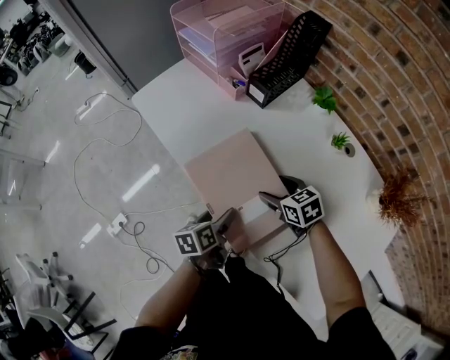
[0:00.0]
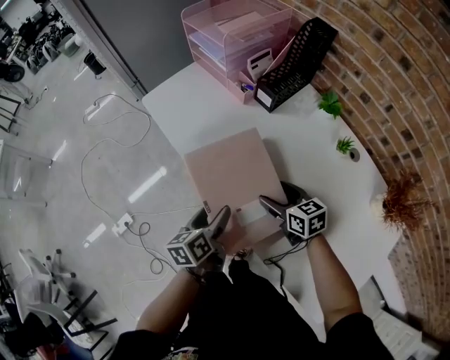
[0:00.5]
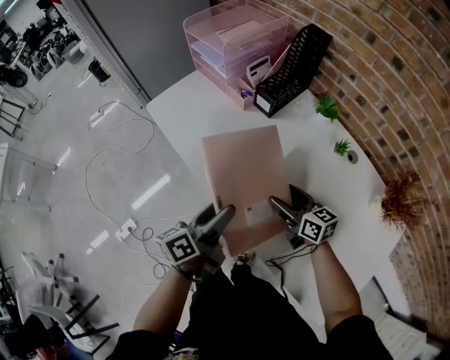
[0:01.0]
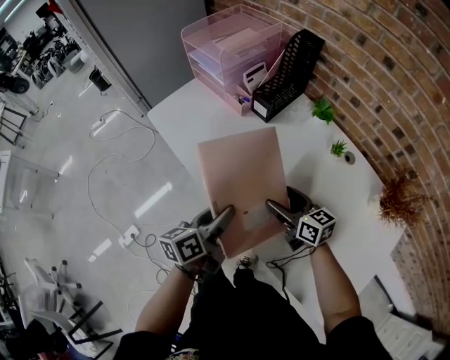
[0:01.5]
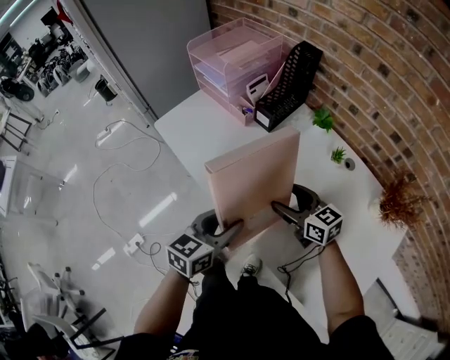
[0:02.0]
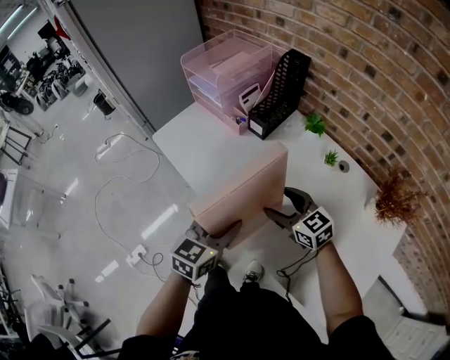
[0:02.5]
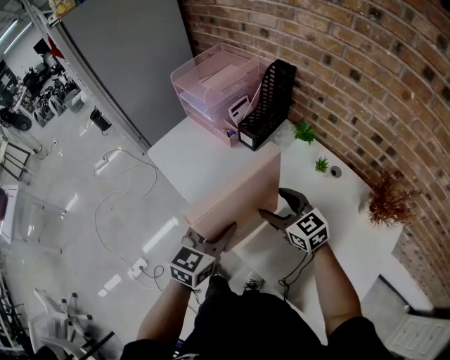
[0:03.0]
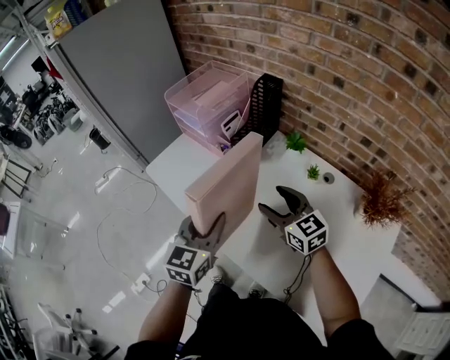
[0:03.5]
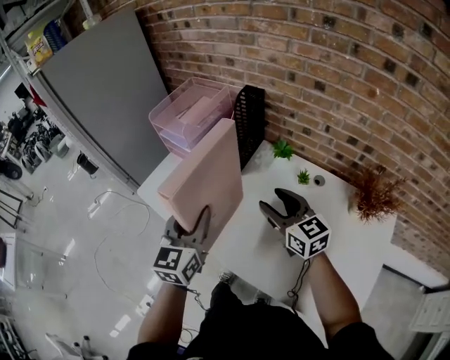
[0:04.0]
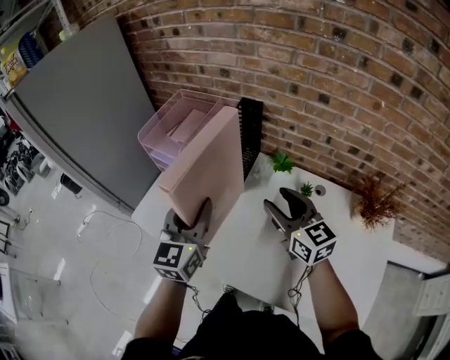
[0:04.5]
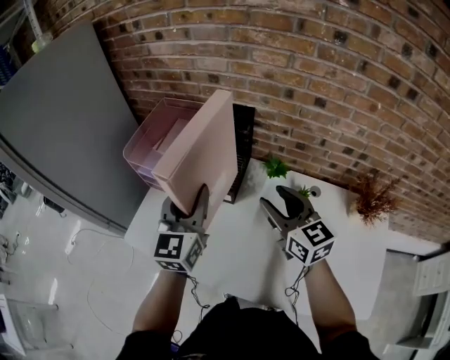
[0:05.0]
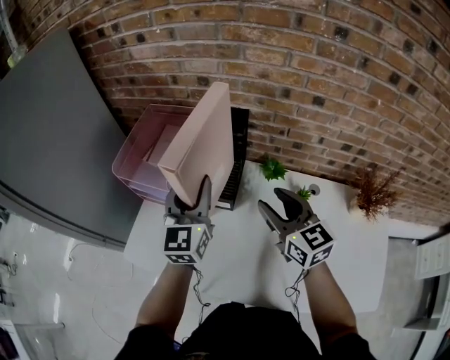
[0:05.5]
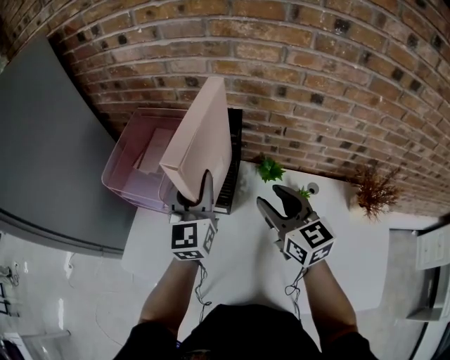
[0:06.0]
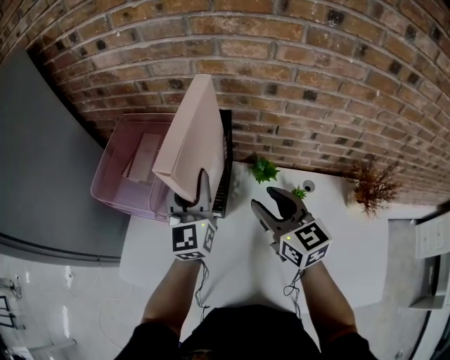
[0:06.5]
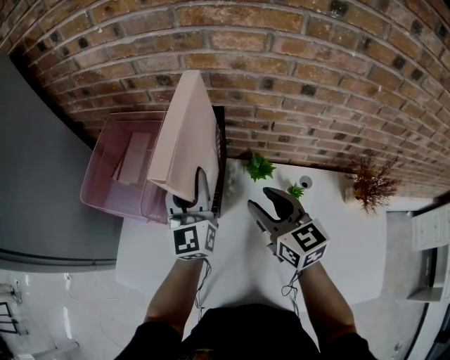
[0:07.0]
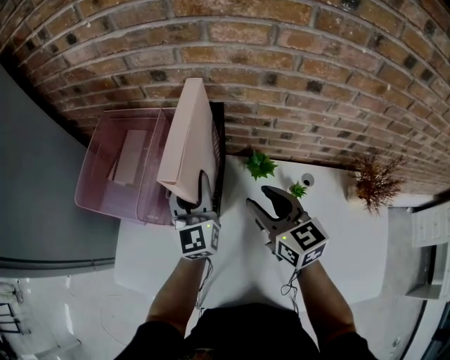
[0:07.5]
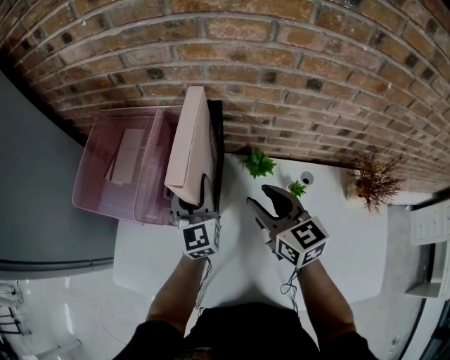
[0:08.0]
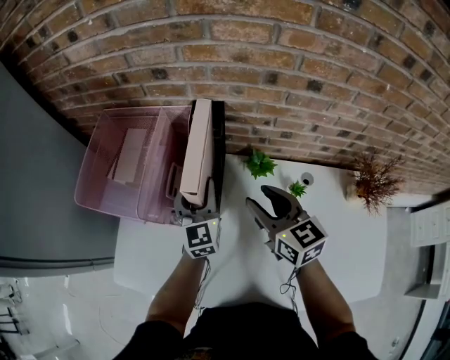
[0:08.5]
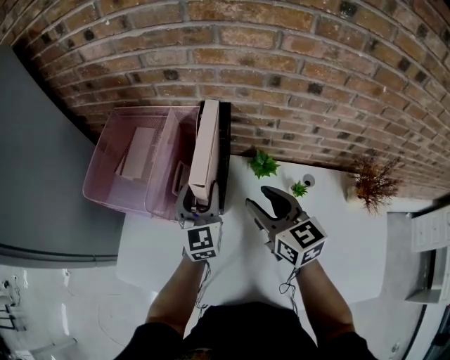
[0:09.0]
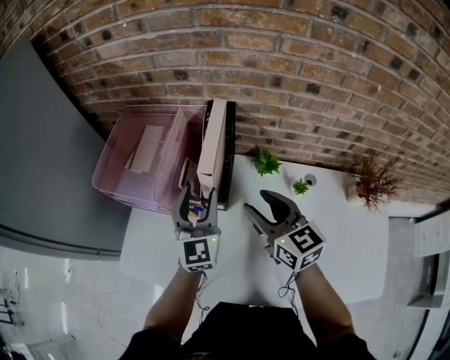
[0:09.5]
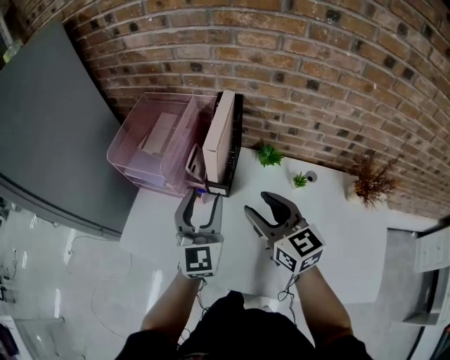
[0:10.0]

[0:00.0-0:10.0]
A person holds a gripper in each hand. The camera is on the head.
0:00.0 to 0:02.0: The right gripper goes approximately 10 cm upward, and changes its angle by some 30 degrees. Meanwhile the left gripper is displaced upward by some 20 cm, rotates around the line of its fingers by approximately 40 degrees, clockwise from behind, and closes.
0:02.0 to 0:04.0: The left gripper goes some 20 cm upward and forward, and changes its angle by roughly 30 degrees. Meanwhile the right gripper is displaced upward by some 15 cm, and rotates about 30 degrees.
0:04.0 to 0:06.0: The left gripper is displaced forward by about 30 cm. The right gripper moves forward, some 15 cm, and changes its angle by roughly 20 degrees.
0:06.0 to 0:08.0: The right gripper goes approximately 5 cm downward, while the left gripper moves downward and forward, about 15 cm.
0:08.0 to 0:10.0: The right gripper is displaced backward and to the left by roughly 15 cm. The left gripper goes roughly 20 cm backward and upward.

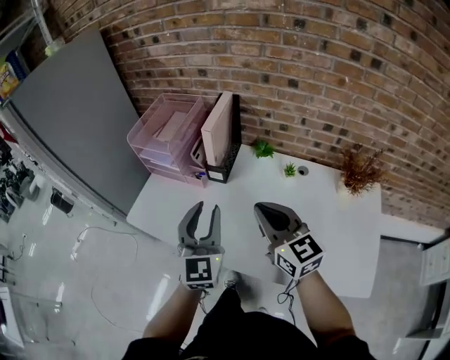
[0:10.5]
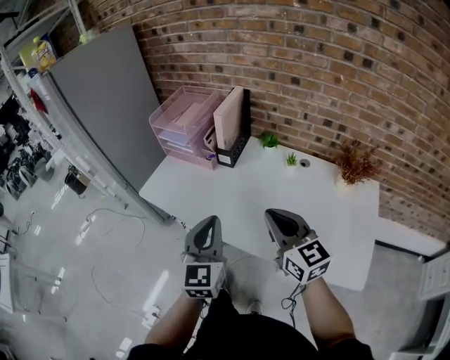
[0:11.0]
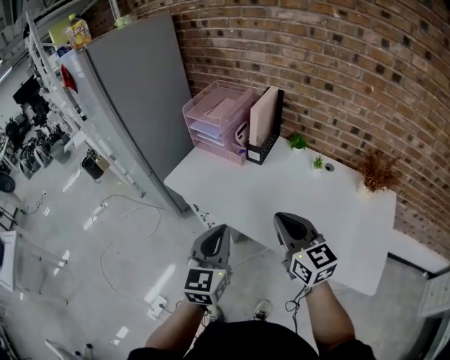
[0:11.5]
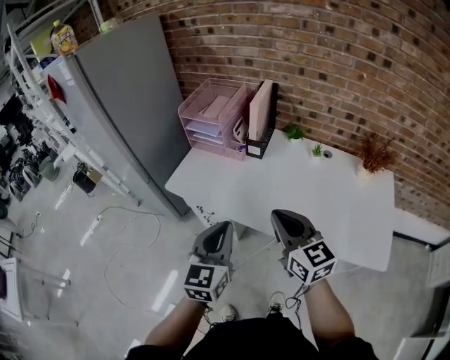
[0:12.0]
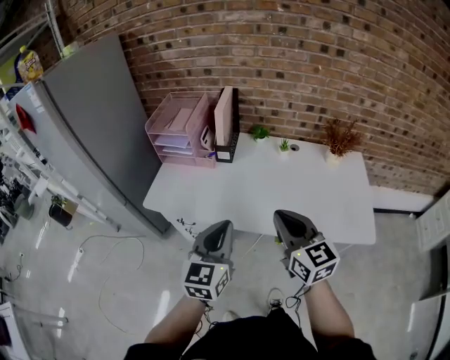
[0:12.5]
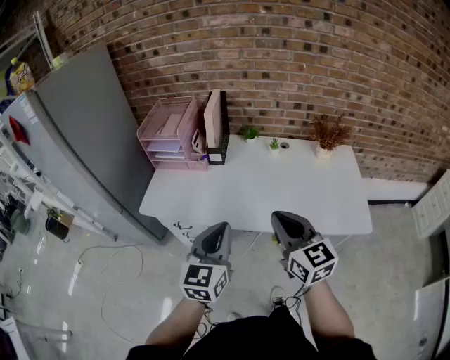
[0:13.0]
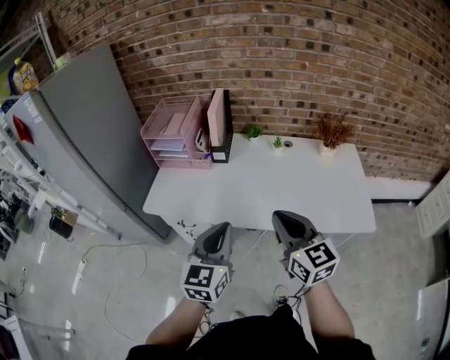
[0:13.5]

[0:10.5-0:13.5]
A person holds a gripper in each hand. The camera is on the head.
0:10.5 to 0:12.0: The grippers both shift backward and to the left by about 20 cm. The left gripper closes.
0:12.0 to 0:13.5: The right gripper is displaced backward by approximately 5 cm.

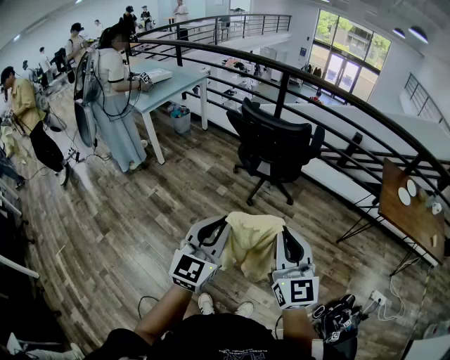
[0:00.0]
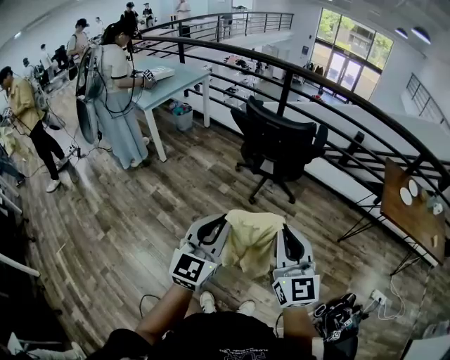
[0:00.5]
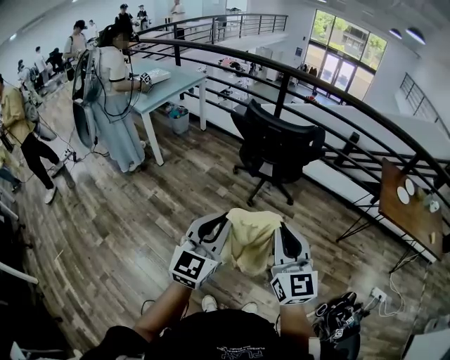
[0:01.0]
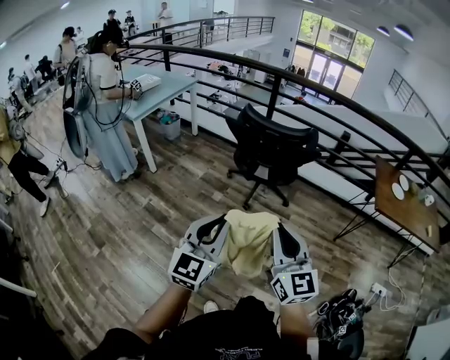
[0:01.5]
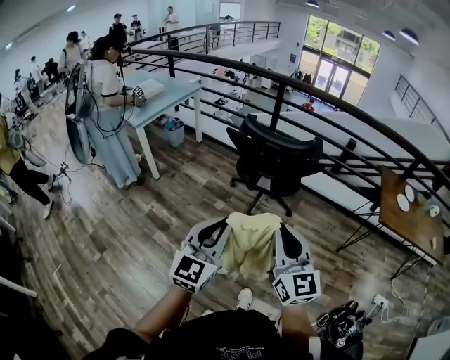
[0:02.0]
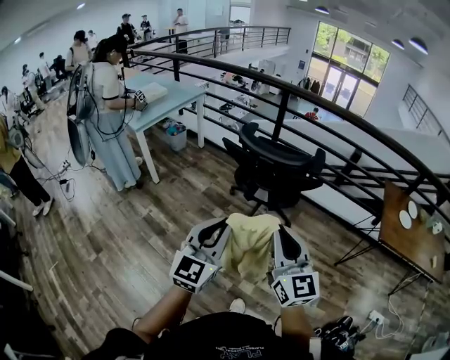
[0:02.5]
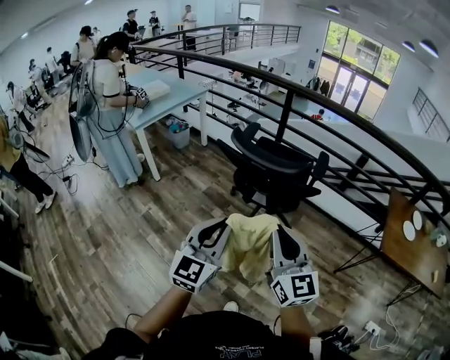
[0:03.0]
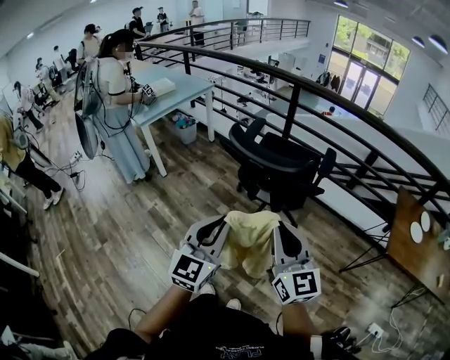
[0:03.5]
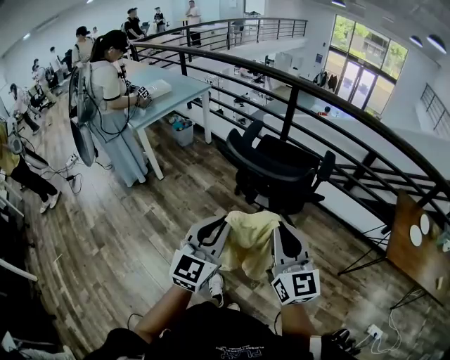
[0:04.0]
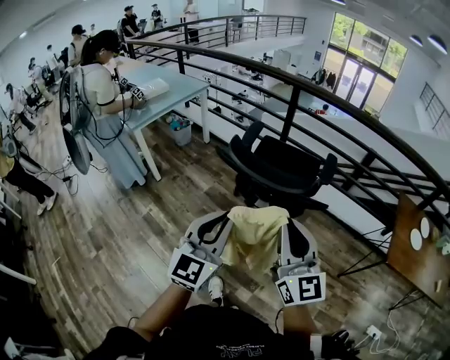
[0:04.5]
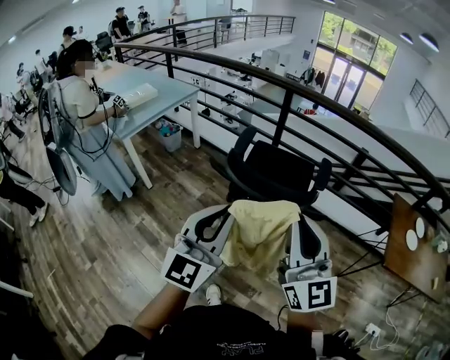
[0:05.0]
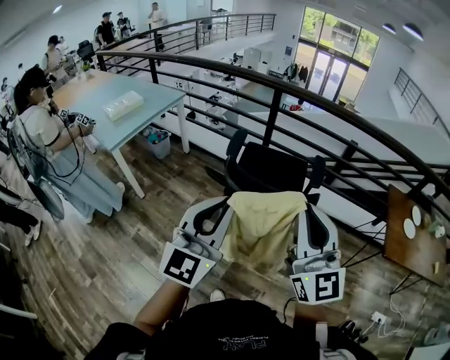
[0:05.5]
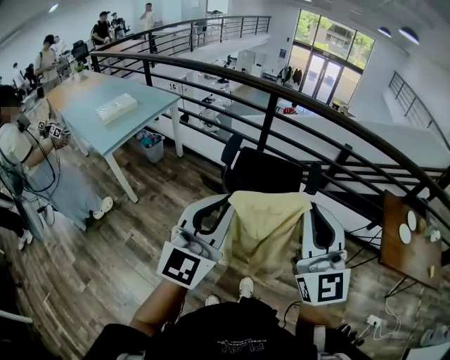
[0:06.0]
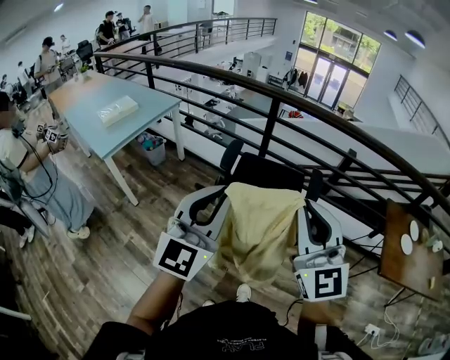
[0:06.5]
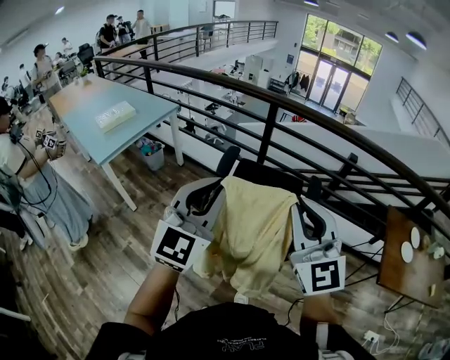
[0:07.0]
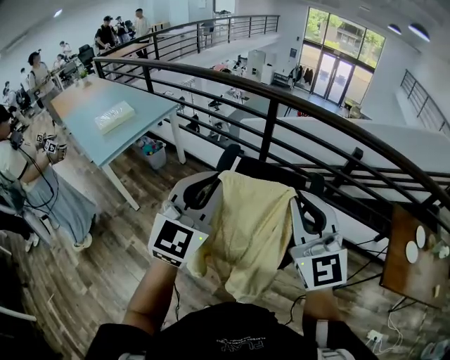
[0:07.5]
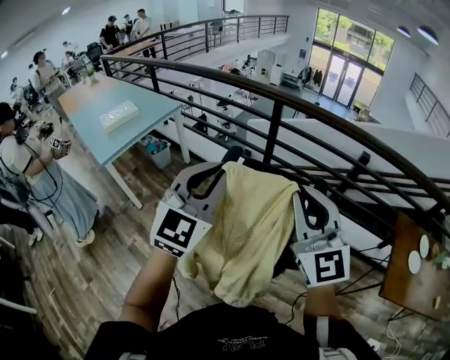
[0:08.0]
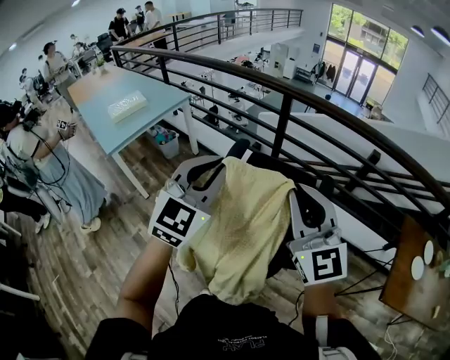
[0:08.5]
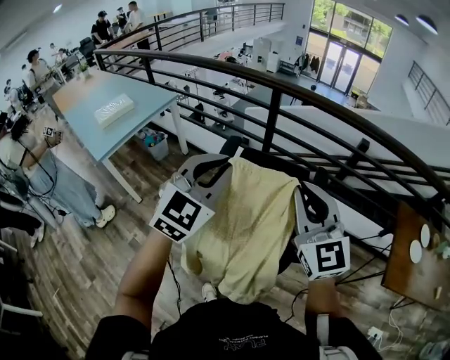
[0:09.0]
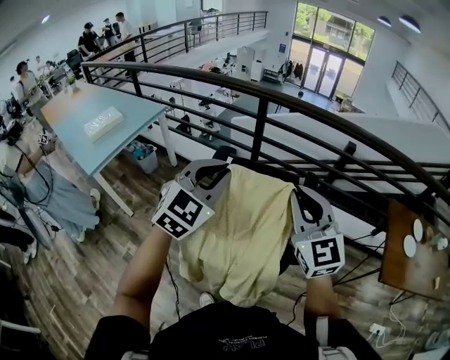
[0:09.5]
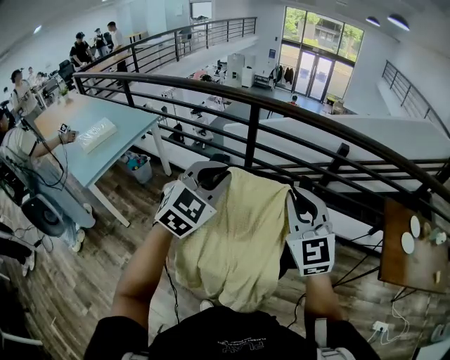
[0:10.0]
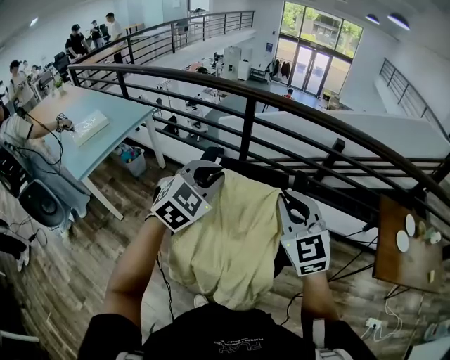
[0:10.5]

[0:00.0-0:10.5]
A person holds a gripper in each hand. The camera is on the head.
0:00.0 to 0:02.0: The left gripper heads forward, covering roughly 5 cm. The right gripper travels forward and to the left by some 10 cm.
0:02.0 to 0:04.0: The two grippers go roughly 20 cm forward and to the right.
0:04.0 to 0:06.5: The two grippers go approximately 25 cm forward and upward. The right gripper swivels some 30 degrees.
0:06.5 to 0:08.5: The two grippers go about 15 cm forward and to the right. The left gripper turns by about 20 degrees.
0:08.5 to 0:10.5: The right gripper travels downward by about 5 cm, and turns by approximately 20 degrees. Meanwhile the left gripper moves downward and forward, some 10 cm, and changes its angle by roughly 30 degrees.

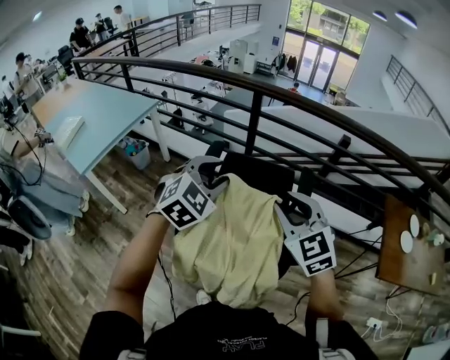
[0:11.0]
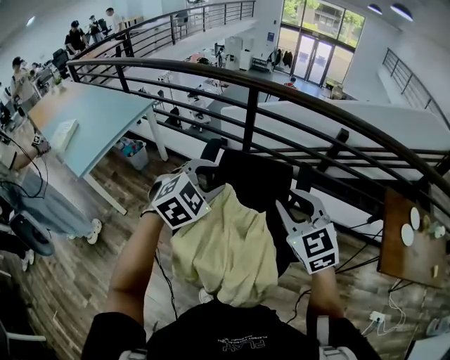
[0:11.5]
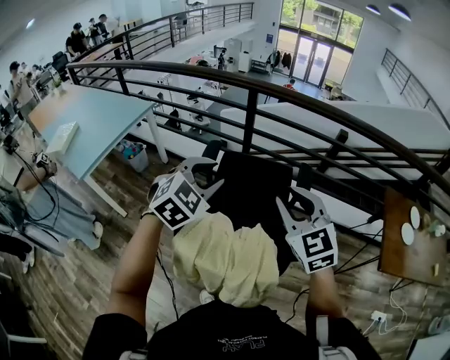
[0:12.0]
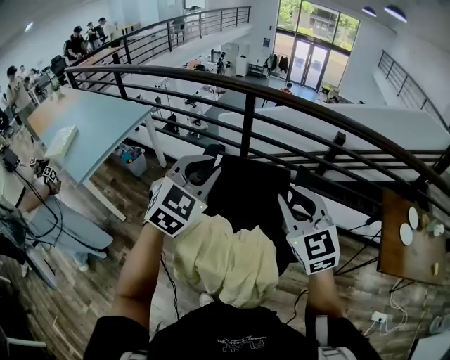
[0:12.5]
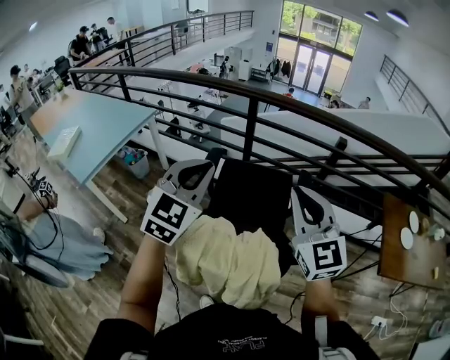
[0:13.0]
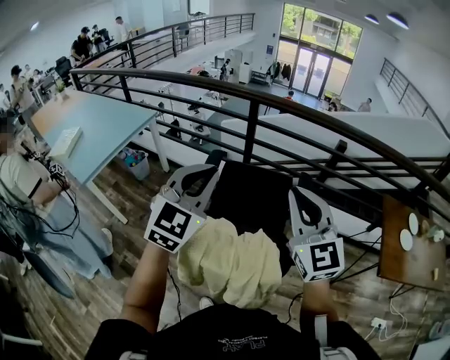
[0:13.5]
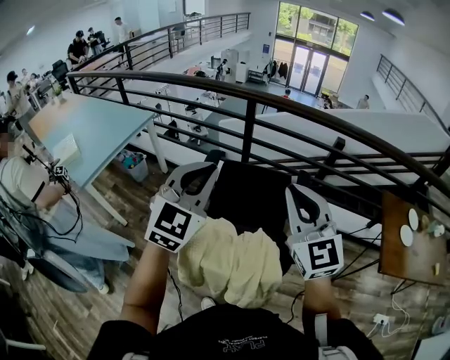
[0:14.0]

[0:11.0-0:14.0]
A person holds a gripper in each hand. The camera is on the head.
0:11.0 to 0:12.5: The left gripper heads upward, covering approximately 5 cm, and closes.
0:12.5 to 0:14.0: The right gripper heads upward, covering approximately 5 cm, while the left gripper shifts by some 5 cm.
